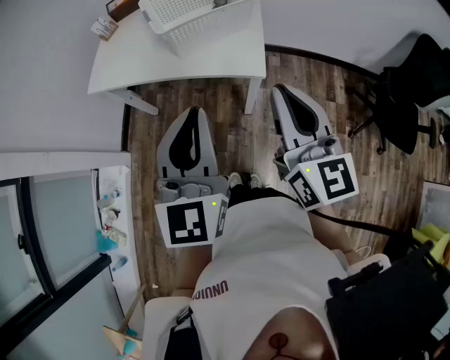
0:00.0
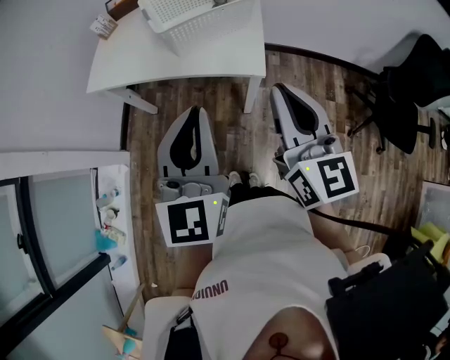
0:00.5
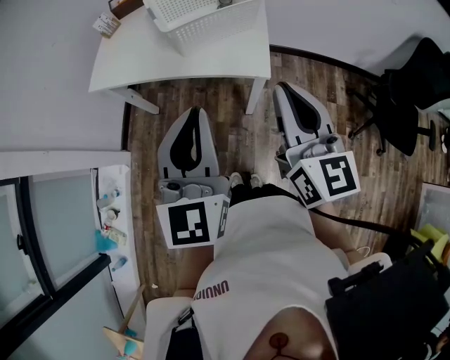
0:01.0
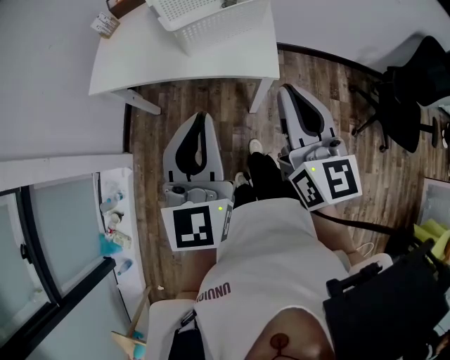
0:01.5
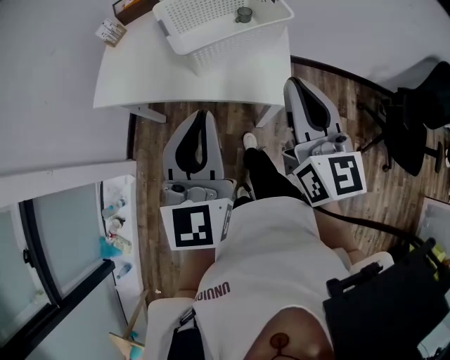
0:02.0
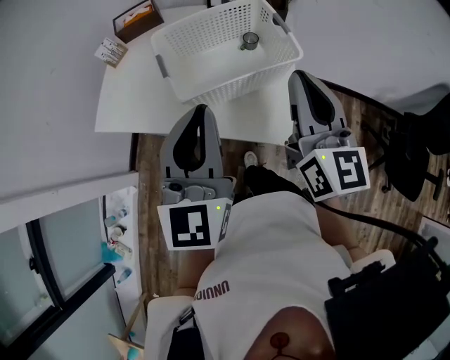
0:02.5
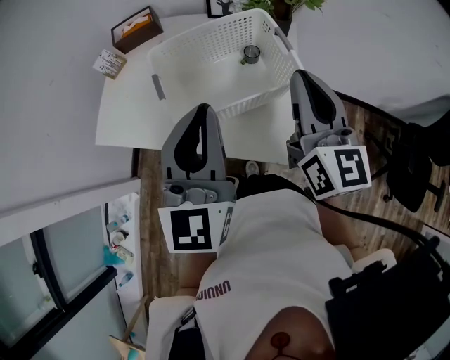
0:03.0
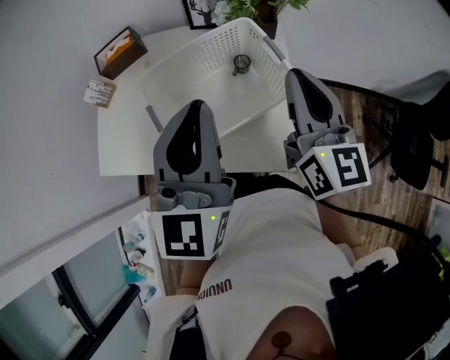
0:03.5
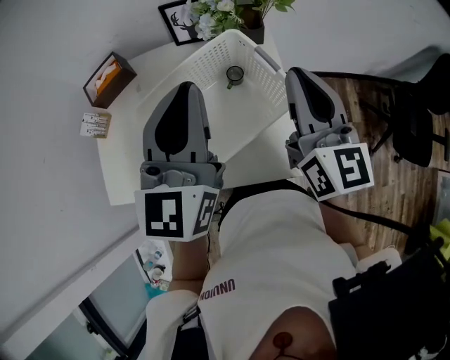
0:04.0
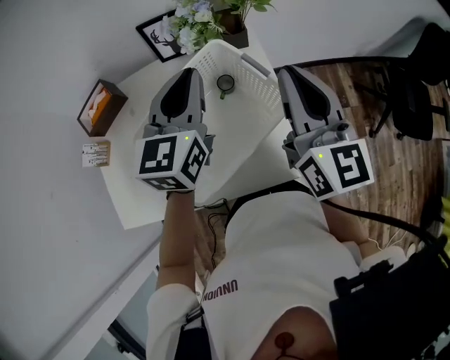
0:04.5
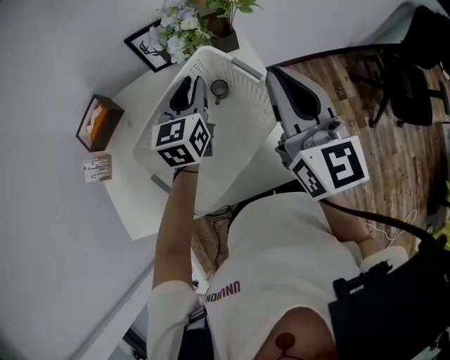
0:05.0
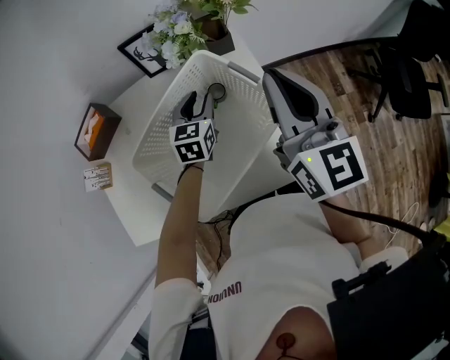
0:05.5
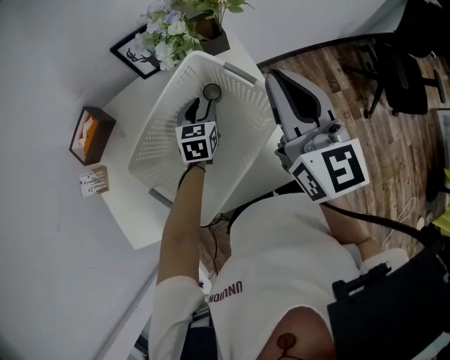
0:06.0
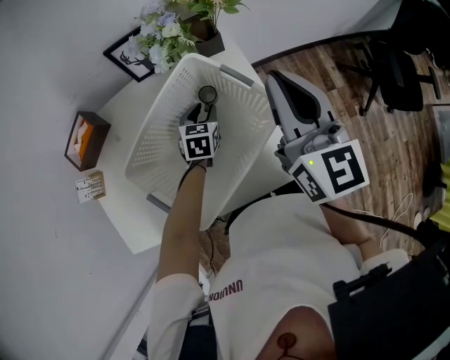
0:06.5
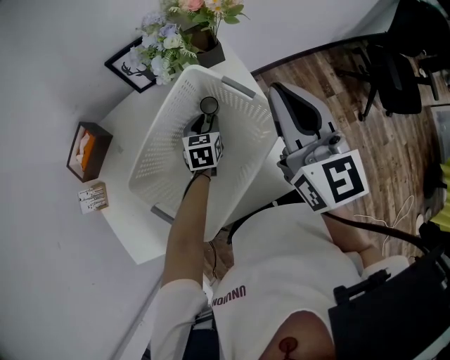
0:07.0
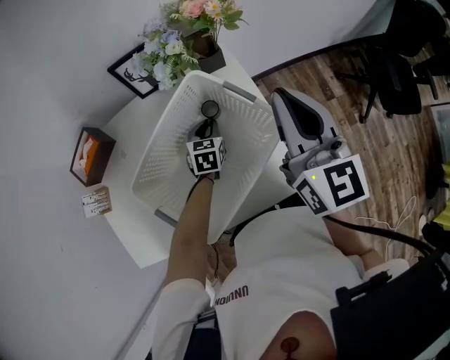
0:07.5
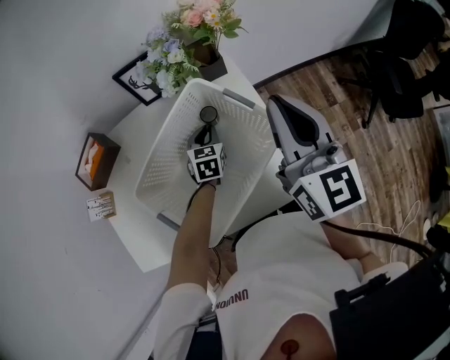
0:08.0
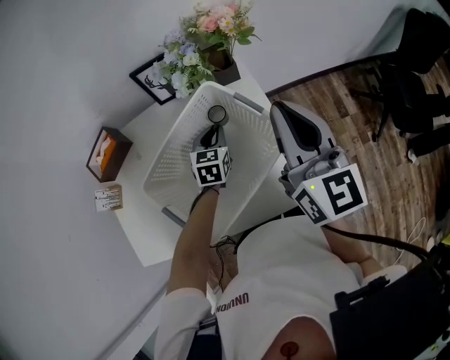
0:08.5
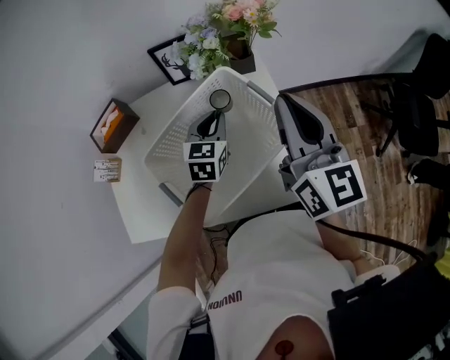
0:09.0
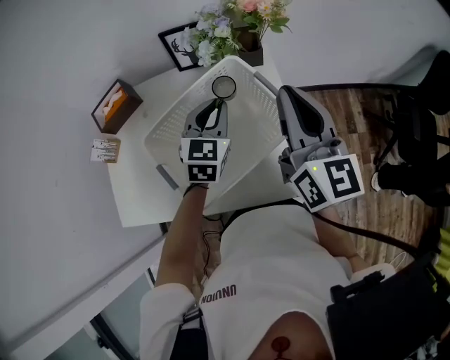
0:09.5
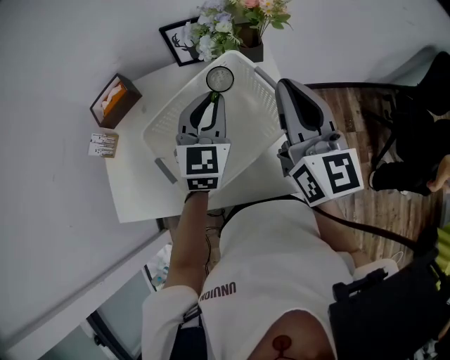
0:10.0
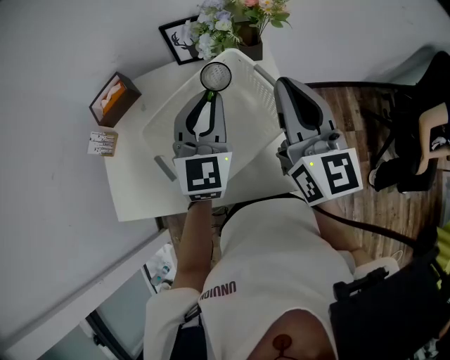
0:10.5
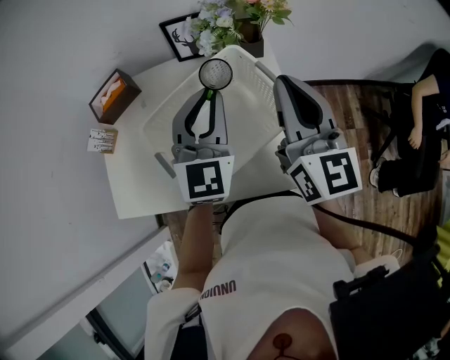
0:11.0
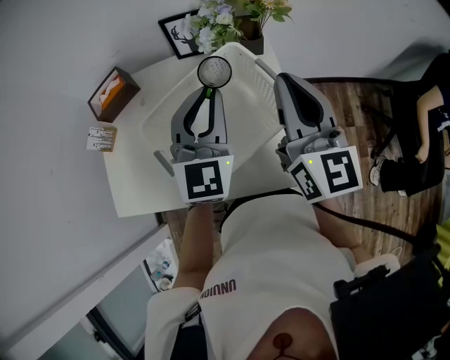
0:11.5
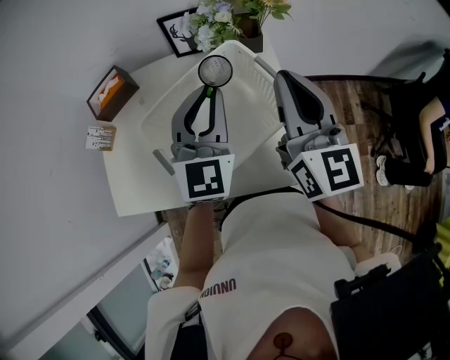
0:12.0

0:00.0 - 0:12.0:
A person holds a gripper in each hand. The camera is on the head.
0:00.0 - 0:02.0: The two grippers go about 15 cm forward.
0:02.0 - 0:04.0: Both grippers travel together forward, about 30 cm.
0:04.0 - 0:06.0: The left gripper moves downward and forward, some 35 cm, angles its fingers downward, by about 40 degrees, and opens.
0:06.0 - 0:08.0: The left gripper closes.
0:08.0 - 0:10.0: The left gripper goes about 25 cm upward, and swivels roughly 30 degrees.
0:10.0 - 0:12.0: The left gripper moves upward, about 5 cm.

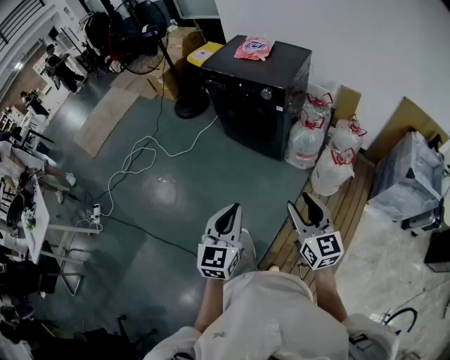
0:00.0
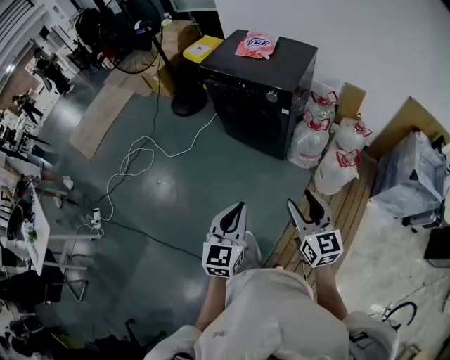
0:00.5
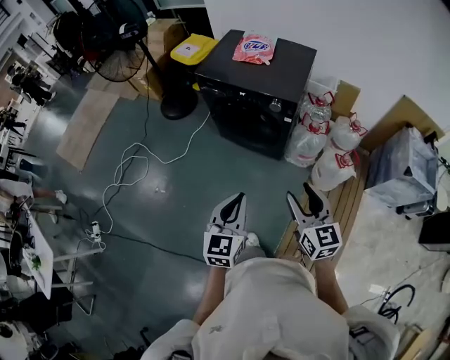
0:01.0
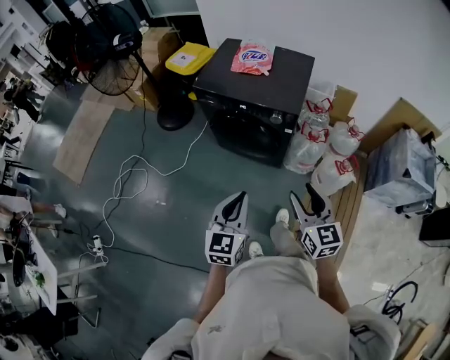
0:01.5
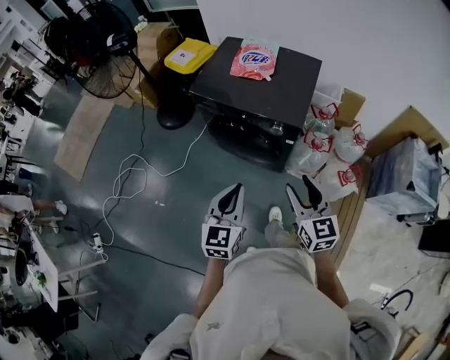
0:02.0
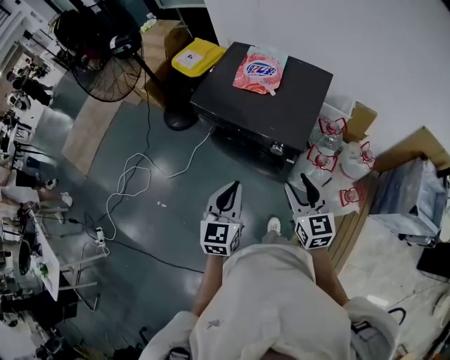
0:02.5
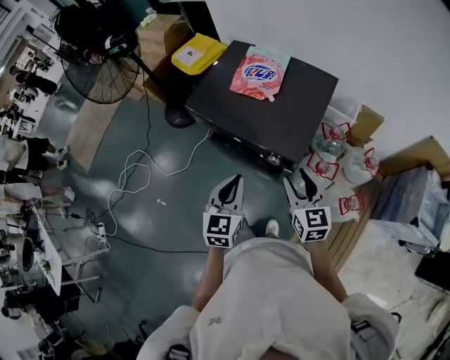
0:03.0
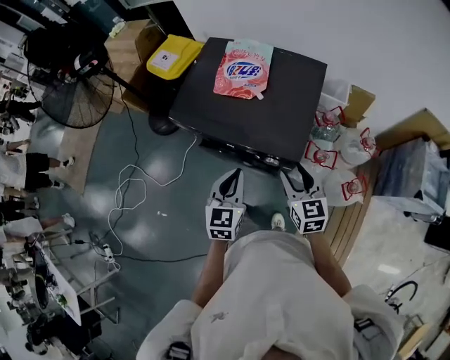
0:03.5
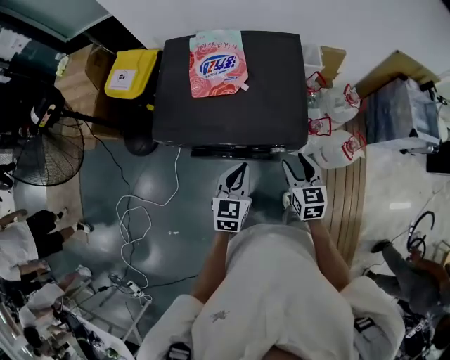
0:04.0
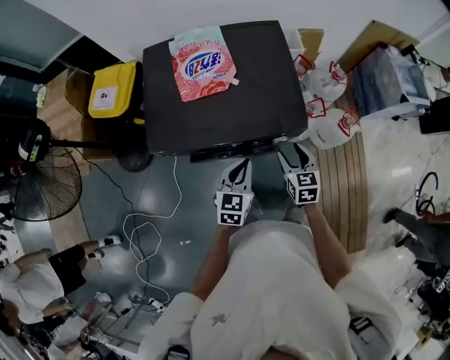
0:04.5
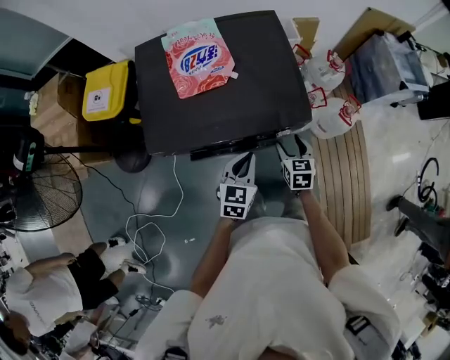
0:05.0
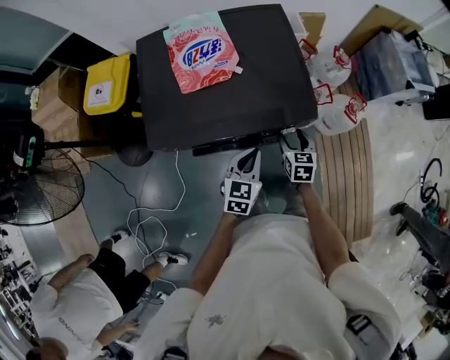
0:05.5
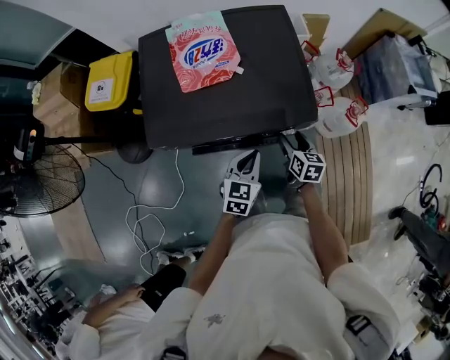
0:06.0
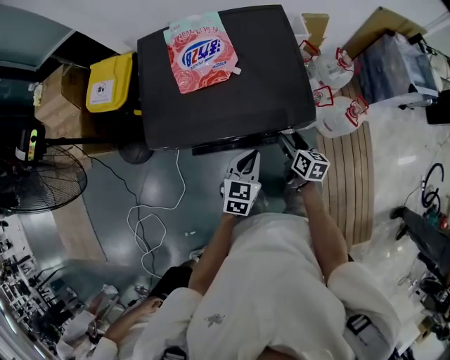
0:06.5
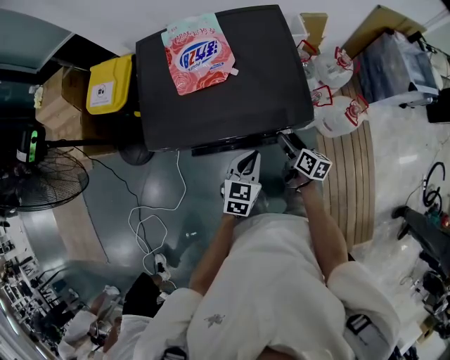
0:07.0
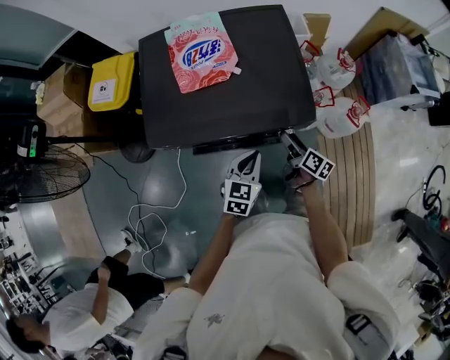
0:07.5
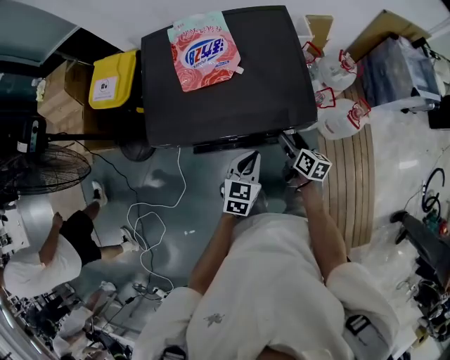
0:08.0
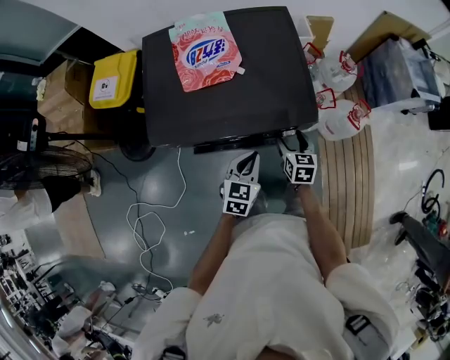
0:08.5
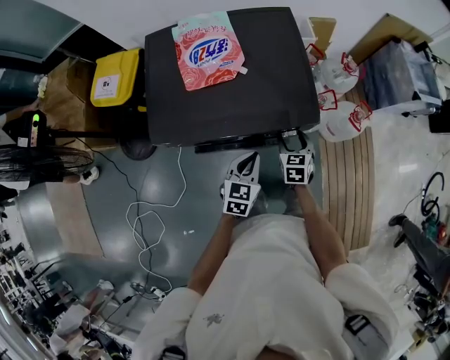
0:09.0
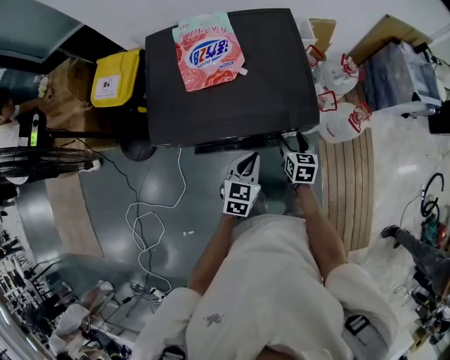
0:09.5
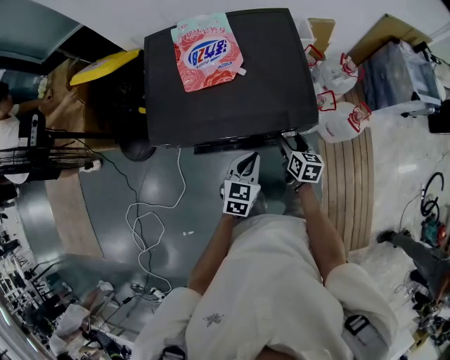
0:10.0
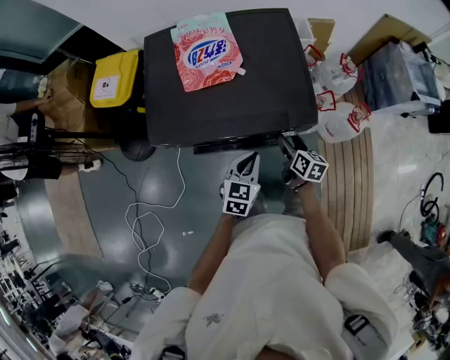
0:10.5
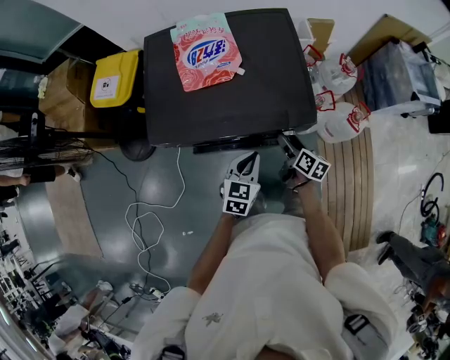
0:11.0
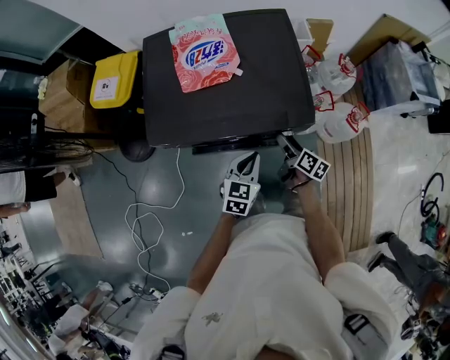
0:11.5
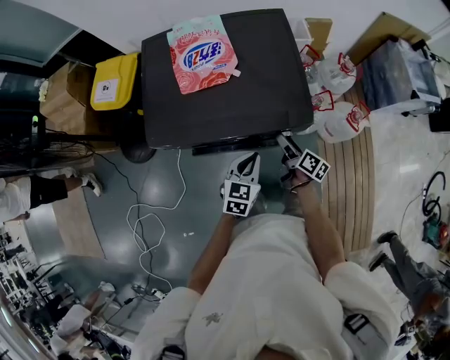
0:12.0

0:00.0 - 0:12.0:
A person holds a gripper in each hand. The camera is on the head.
0:00.0 - 0:02.0: The grippers both shift forward by some 35 cm.
0:02.0 - 0:04.0: The right gripper moves roughly 30 cm, and turns by approximately 30 degrees. The left gripper ends up about 35 cm from where it was, and turns by approximately 30 degrees.
0:04.0 - 0:06.0: The left gripper shifts approximately 10 cm downward. Meanwhile the right gripper shifts roughly 15 cm downward, and turns by about 30 degrees.
0:10.0 - 0:12.0: The right gripper rotates roughly 40 degrees.

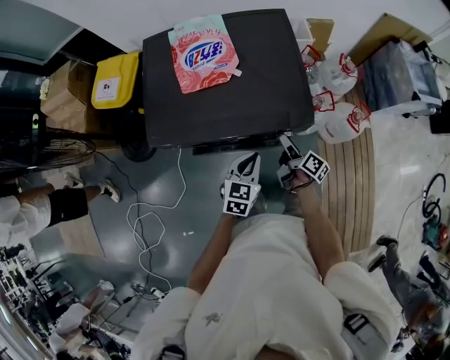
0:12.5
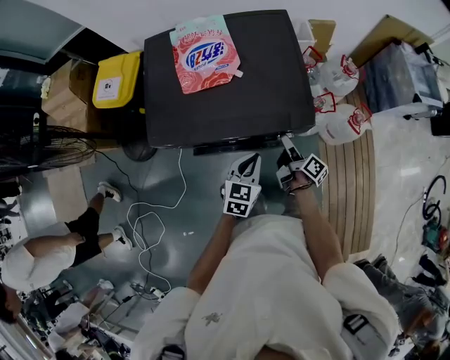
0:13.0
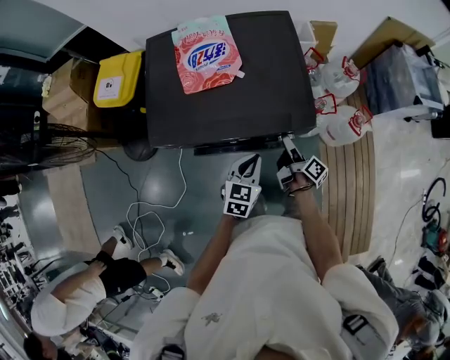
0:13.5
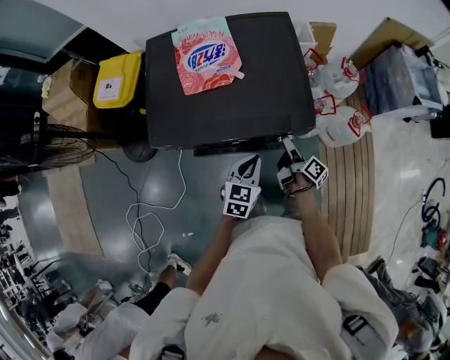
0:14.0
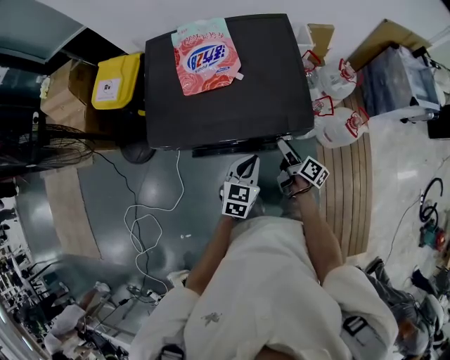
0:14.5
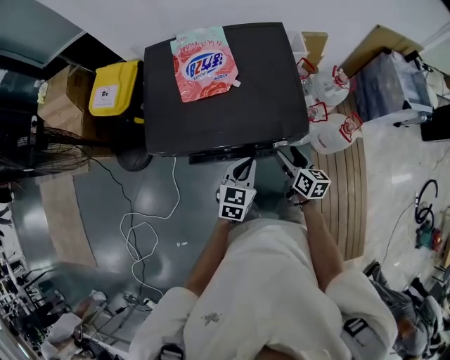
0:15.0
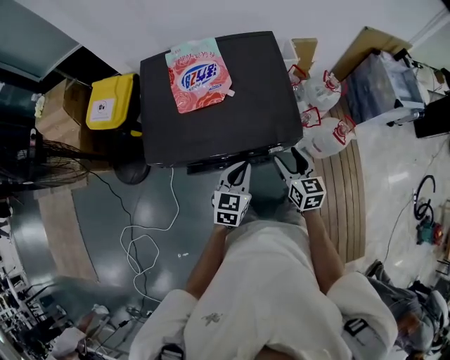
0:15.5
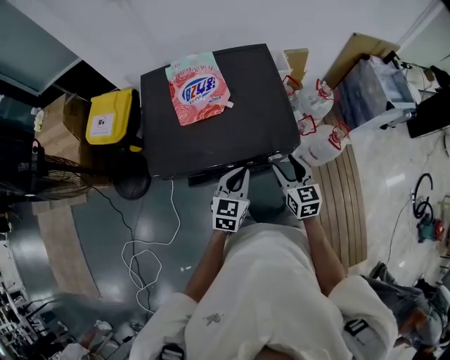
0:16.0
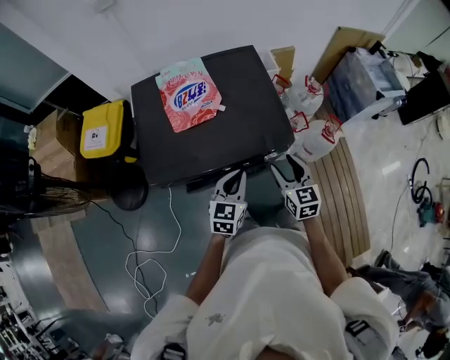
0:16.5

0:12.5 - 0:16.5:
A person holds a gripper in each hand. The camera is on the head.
0:12.5 - 0:14.5: The grippers stay close to where they were, moving slightly.
0:14.5 - 0:16.5: The left gripper is displaced upward by approximately 5 cm. The right gripper is displaced upward by about 15 cm, and twists some 60 degrees counterclockwise, seen from behind.
